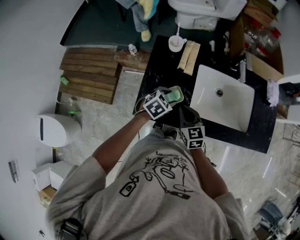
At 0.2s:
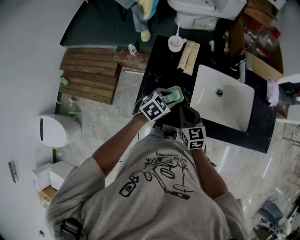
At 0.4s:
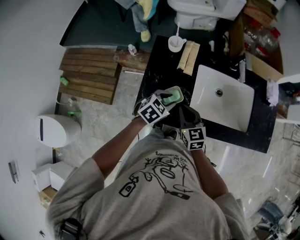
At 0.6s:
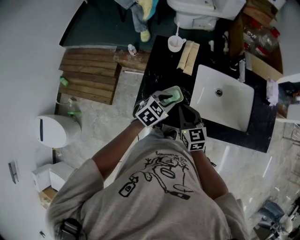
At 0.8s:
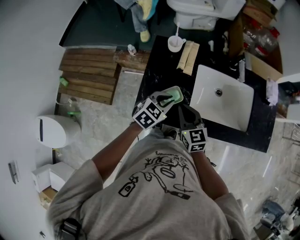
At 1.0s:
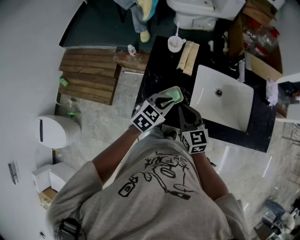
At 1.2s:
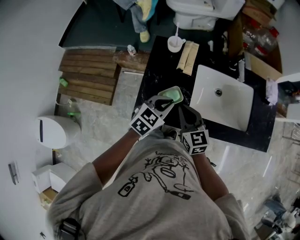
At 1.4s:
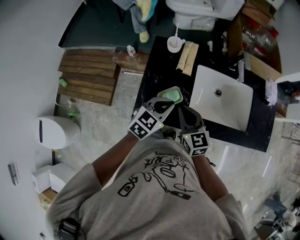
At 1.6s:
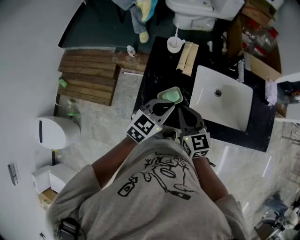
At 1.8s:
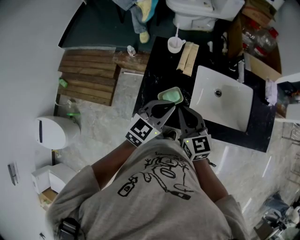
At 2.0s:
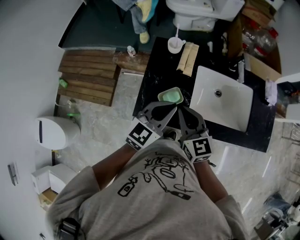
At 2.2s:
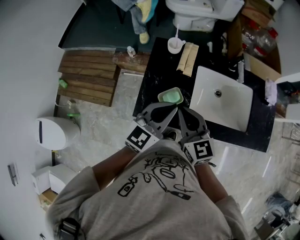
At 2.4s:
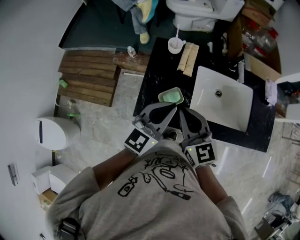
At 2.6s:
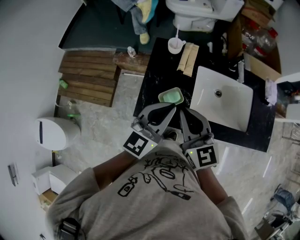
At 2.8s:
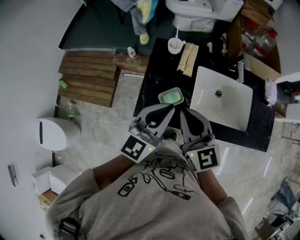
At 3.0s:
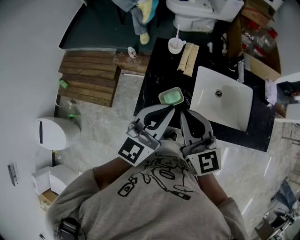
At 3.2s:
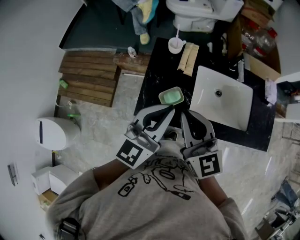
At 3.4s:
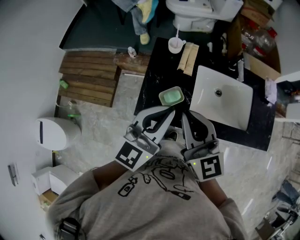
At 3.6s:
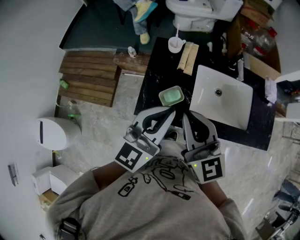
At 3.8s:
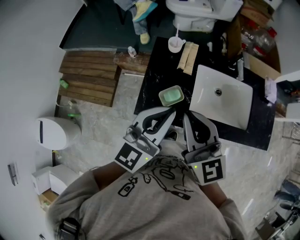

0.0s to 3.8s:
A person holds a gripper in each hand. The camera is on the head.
0.0s to 1.2s: The two grippers go roughly 10 cm upward. The left gripper closes up.
1.2s to 2.6s: Both grippers move upward, about 15 cm. The left gripper angles its fingers upward, by about 30 degrees.
2.6s to 3.8s: Both grippers travel together upward, approximately 5 cm.

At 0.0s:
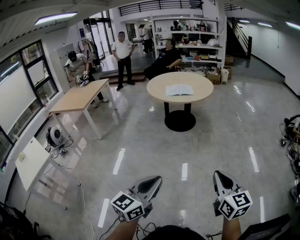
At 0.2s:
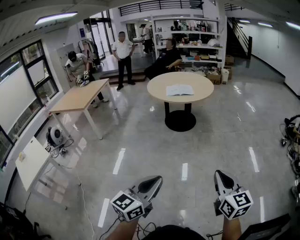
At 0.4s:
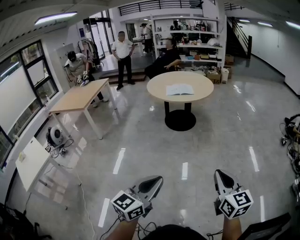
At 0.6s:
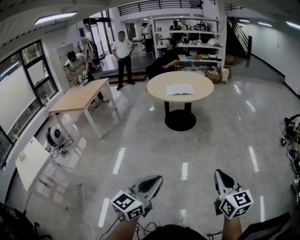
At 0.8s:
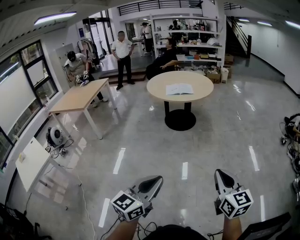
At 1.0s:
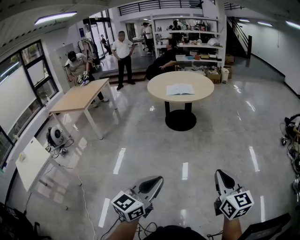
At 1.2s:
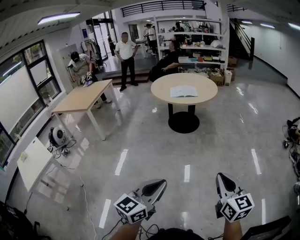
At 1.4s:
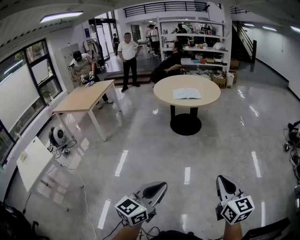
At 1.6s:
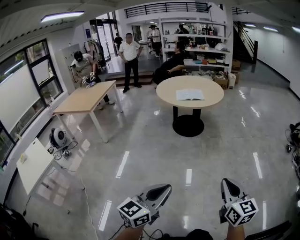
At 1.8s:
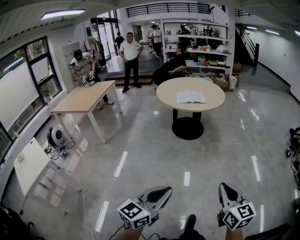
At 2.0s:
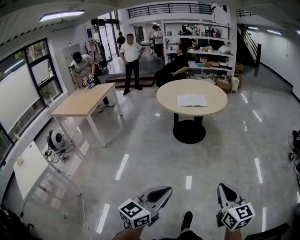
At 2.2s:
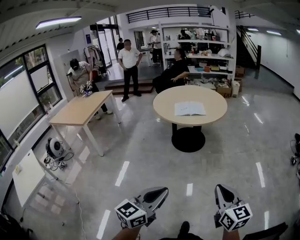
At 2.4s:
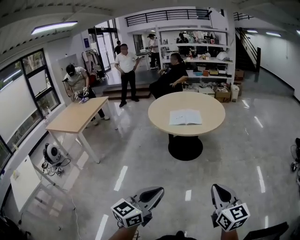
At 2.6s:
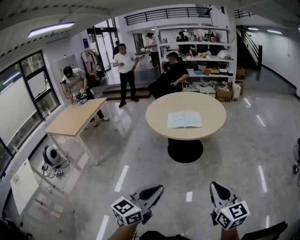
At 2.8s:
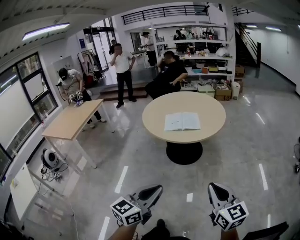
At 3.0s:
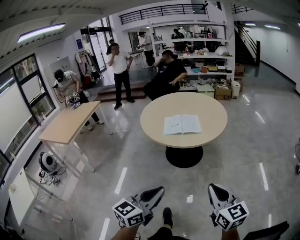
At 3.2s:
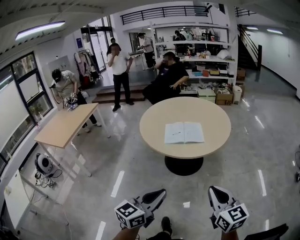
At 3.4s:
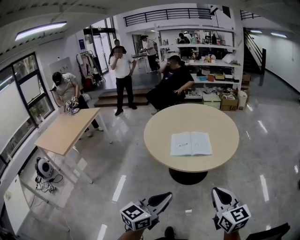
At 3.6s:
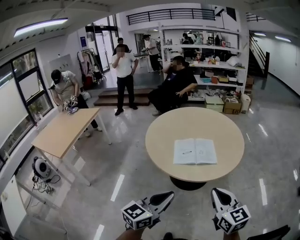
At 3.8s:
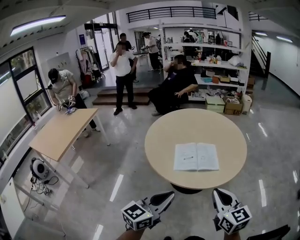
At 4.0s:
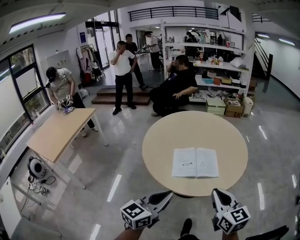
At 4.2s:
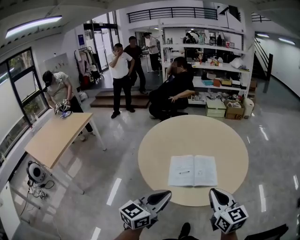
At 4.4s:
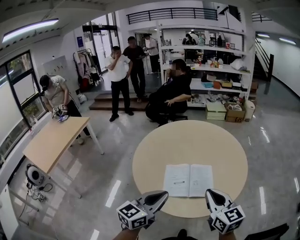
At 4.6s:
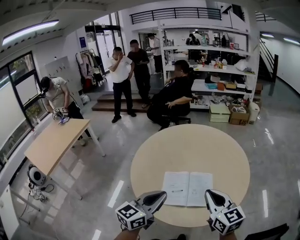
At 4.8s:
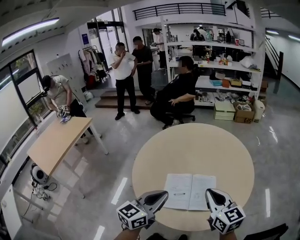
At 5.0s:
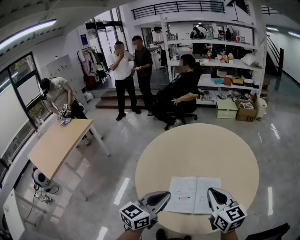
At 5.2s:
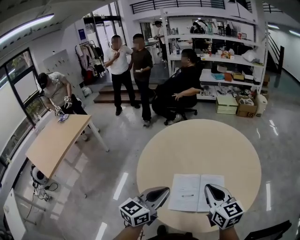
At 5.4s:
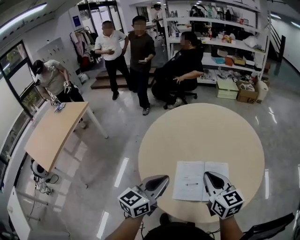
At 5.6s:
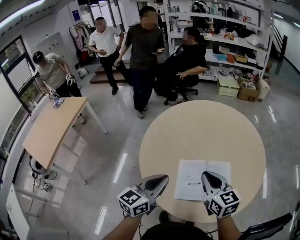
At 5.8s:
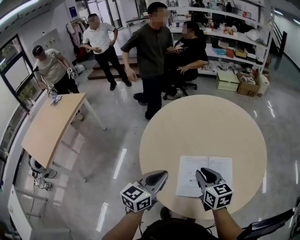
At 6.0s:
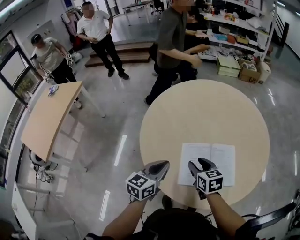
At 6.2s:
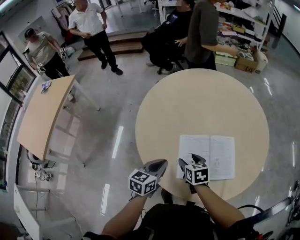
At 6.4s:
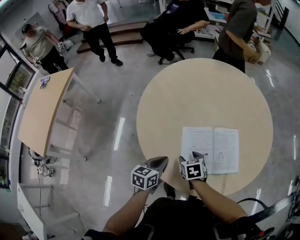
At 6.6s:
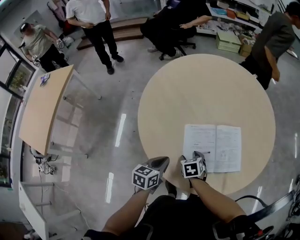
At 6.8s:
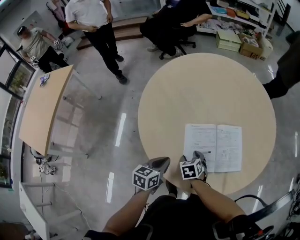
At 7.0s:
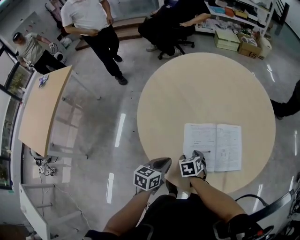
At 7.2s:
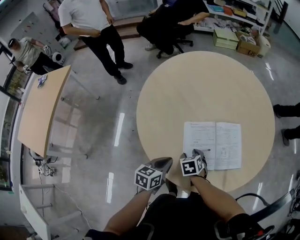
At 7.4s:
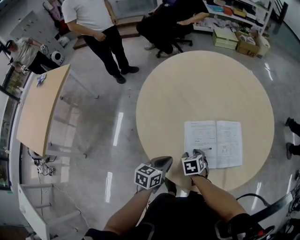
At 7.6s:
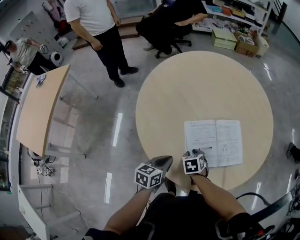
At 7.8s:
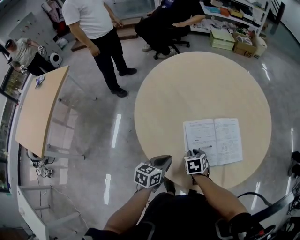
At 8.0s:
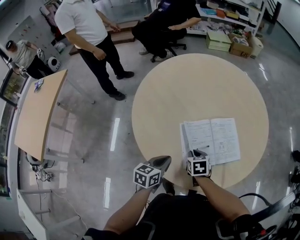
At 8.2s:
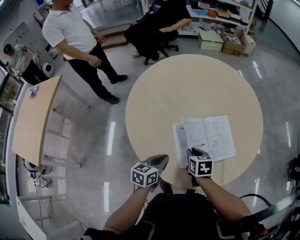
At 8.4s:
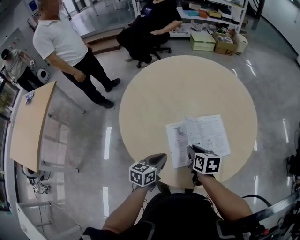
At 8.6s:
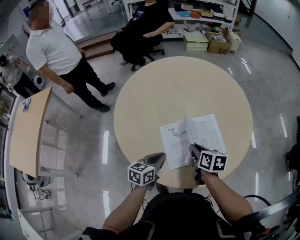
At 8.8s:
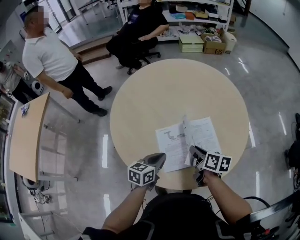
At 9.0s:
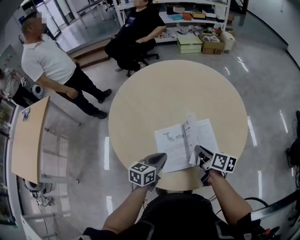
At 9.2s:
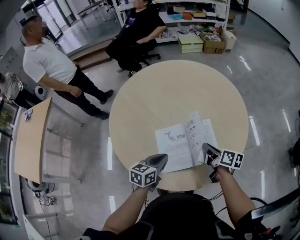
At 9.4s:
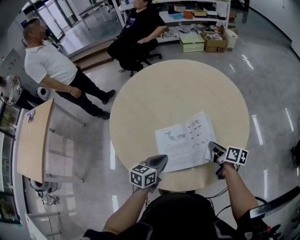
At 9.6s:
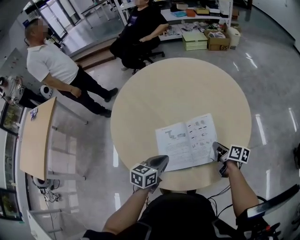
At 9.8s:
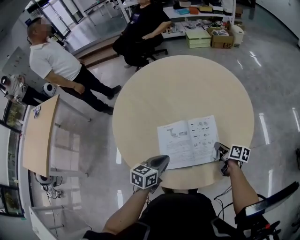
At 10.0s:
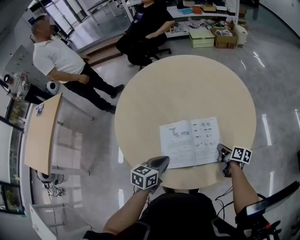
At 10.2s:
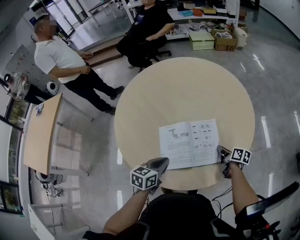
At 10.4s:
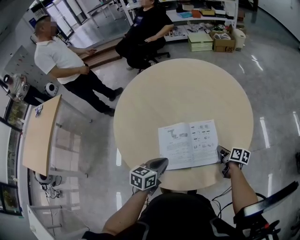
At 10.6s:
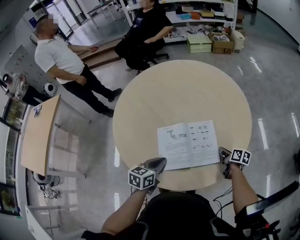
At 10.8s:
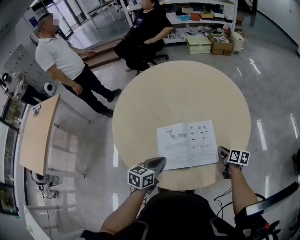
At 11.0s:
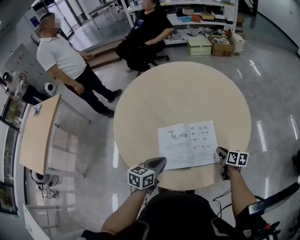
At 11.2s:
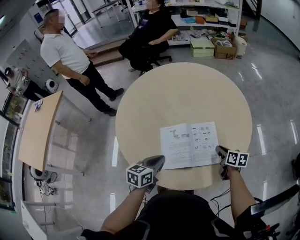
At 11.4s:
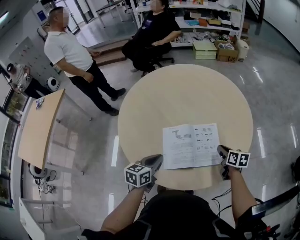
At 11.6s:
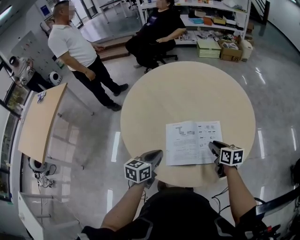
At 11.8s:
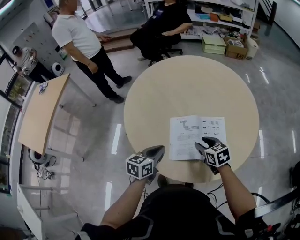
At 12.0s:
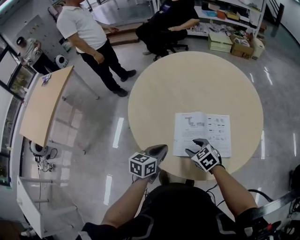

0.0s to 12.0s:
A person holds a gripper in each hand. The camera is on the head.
0.0s to 1.6s: The grippers both shift to the left by approximately 5 cm.
1.6s to 3.0s: The two grippers travel together, forward, some 50 cm.
3.0s to 4.4s: The two grippers travel together, forward, about 50 cm.
4.4s to 6.0s: The left gripper heads forward, downward and to the left, covering approximately 25 cm; the right gripper goes approximately 30 cm downward, forward and to the left, changes its angle by some 30 degrees, and opens its fingers.
6.0s to 7.6s: The two grippers go some 15 cm downward. The right gripper rotates some 30 degrees, and opens, then closes once more.
7.6s to 9.0s: The right gripper shifts about 25 cm to the right and upward, and twists some 50 degrees clockwise, seen from behind, while the left gripper moves to the right and upward, some 15 cm.
9.0s to 10.4s: The right gripper shifts about 20 cm to the right and downward.
10.4s to 12.0s: The right gripper is displaced to the left by approximately 25 cm, twists about 70 degrees counterclockwise, seen from behind, and opens its fingers. Meanwhile the left gripper travels to the left by some 5 cm.

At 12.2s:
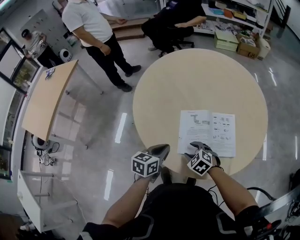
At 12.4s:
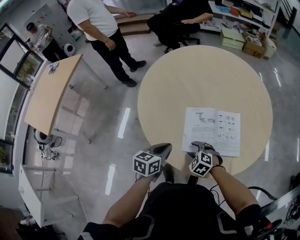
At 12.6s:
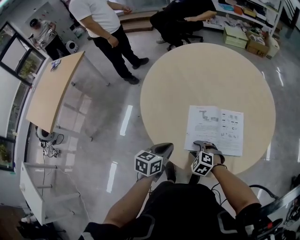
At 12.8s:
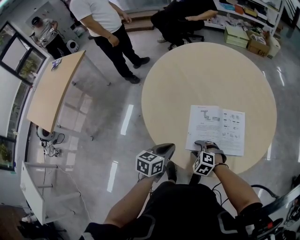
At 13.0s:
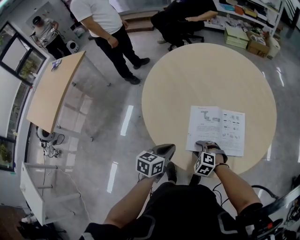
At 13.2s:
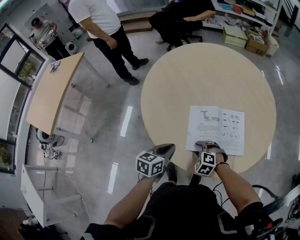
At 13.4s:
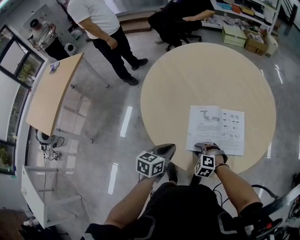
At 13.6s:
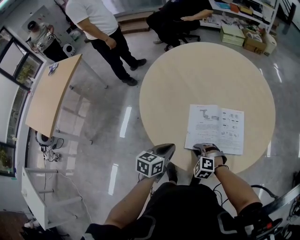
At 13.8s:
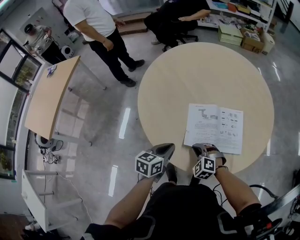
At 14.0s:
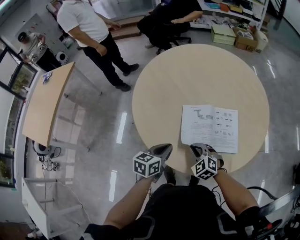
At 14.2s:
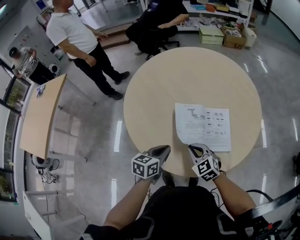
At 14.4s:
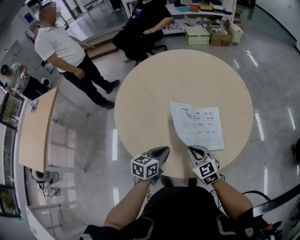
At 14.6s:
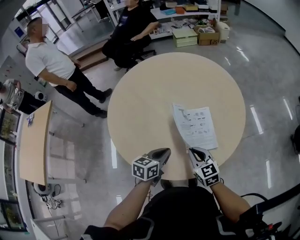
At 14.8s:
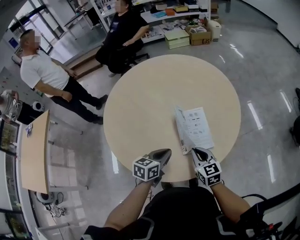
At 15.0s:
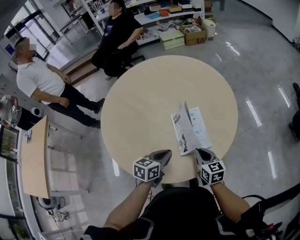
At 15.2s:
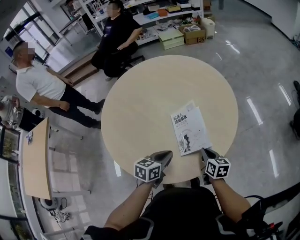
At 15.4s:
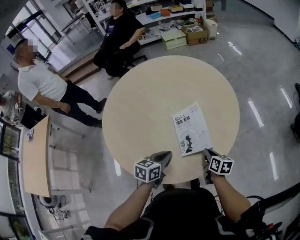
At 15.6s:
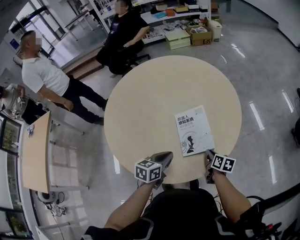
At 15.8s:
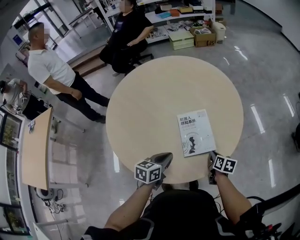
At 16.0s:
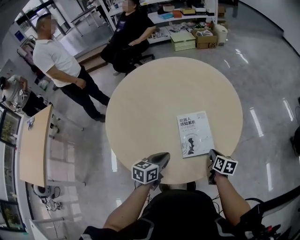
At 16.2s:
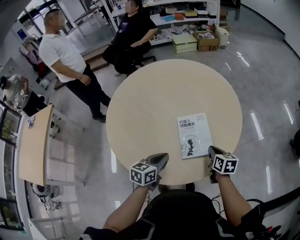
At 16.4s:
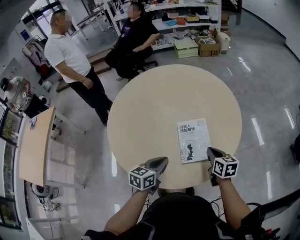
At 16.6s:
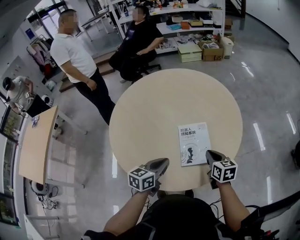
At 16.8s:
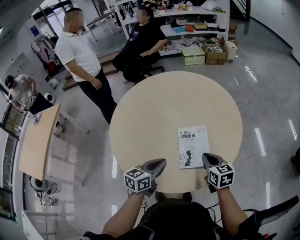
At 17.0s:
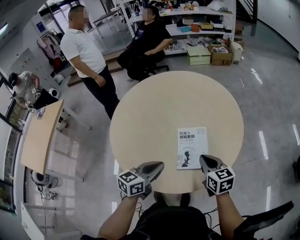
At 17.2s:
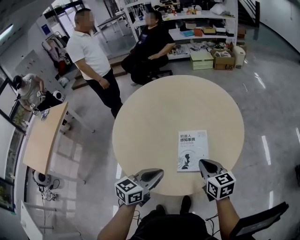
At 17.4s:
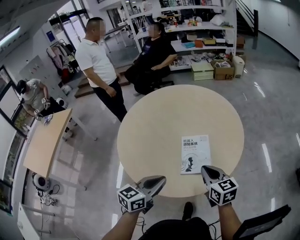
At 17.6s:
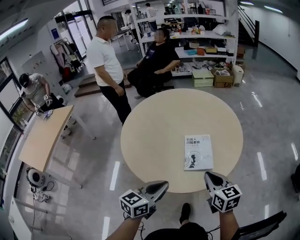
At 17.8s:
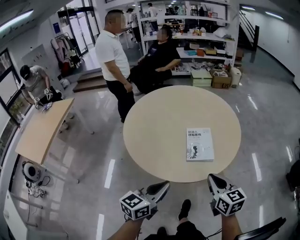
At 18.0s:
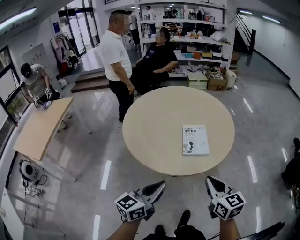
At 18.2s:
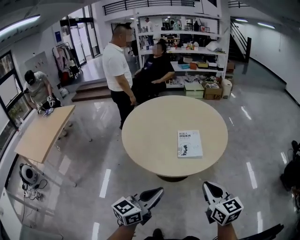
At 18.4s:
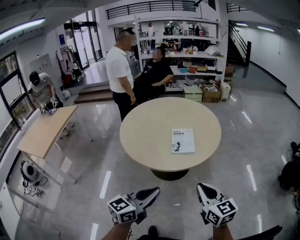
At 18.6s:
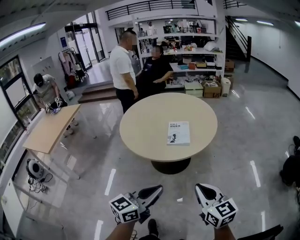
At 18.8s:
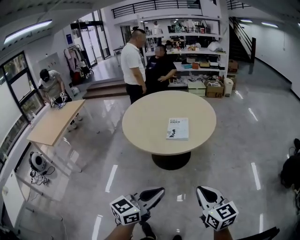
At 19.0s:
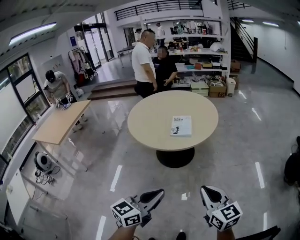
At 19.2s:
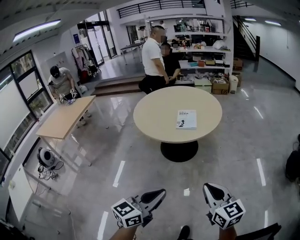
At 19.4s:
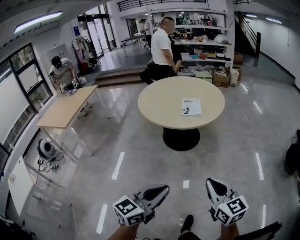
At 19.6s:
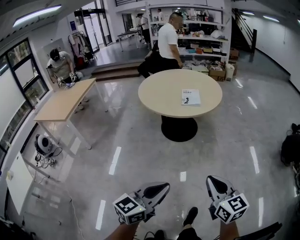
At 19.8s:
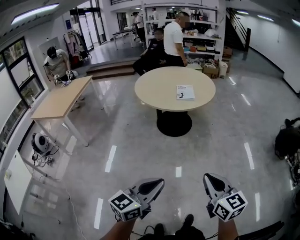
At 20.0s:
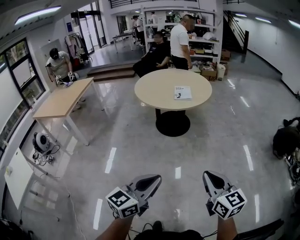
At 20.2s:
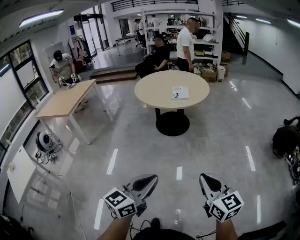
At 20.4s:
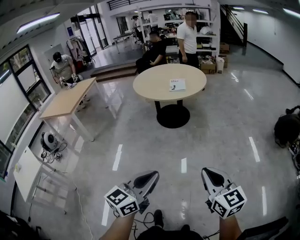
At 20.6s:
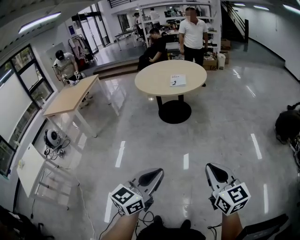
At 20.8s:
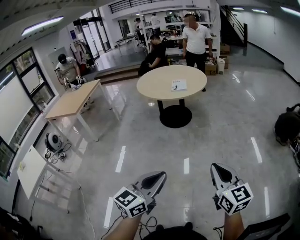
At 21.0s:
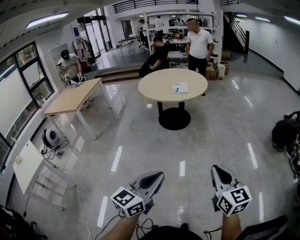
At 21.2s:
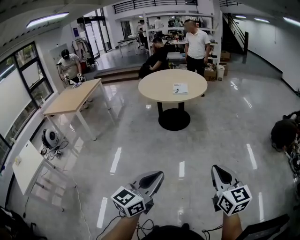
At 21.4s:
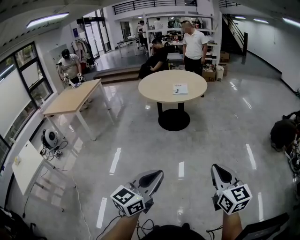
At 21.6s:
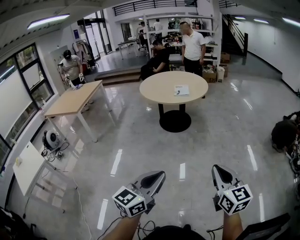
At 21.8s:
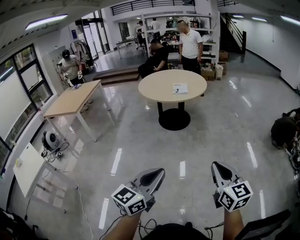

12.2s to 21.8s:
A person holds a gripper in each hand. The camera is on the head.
12.2s to 13.8s: The right gripper rotates roughly 20 degrees, and closes its fingers.
13.8s to 15.4s: The left gripper ends up some 15 cm from where it was, and swivels approximately 20 degrees; the right gripper moves some 10 cm upward and comes back, and twists about 100 degrees clockwise, seen from behind.
15.4s to 17.0s: The left gripper moves upward, some 10 cm. The right gripper moves upward, about 15 cm, and rotates about 40 degrees.
17.0s to 18.6s: Both grippers are carried backward, approximately 40 cm.
18.6s to 20.2s: The pair of grippers is taken backward, approximately 50 cm.
20.2s to 21.8s: The left gripper goes about 10 cm backward. Meanwhile the right gripper is displaced backward and to the right by about 10 cm.
